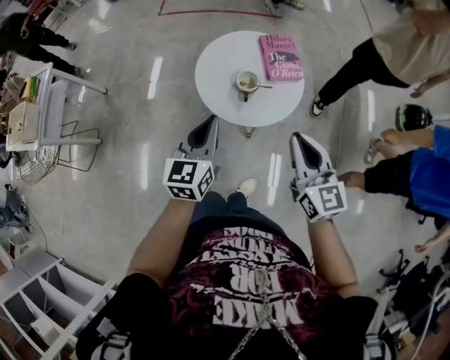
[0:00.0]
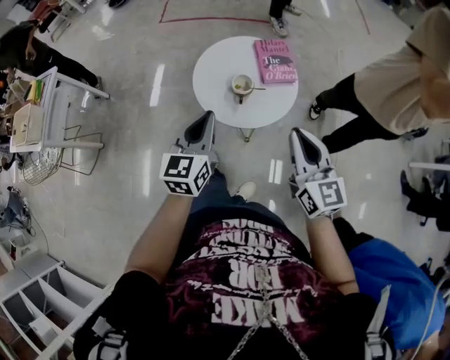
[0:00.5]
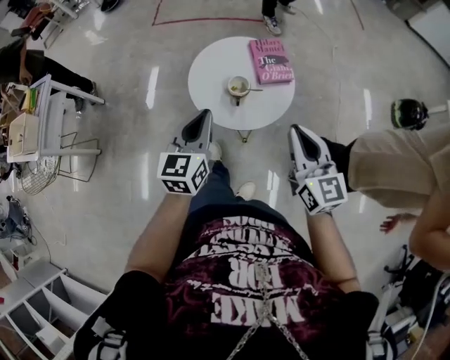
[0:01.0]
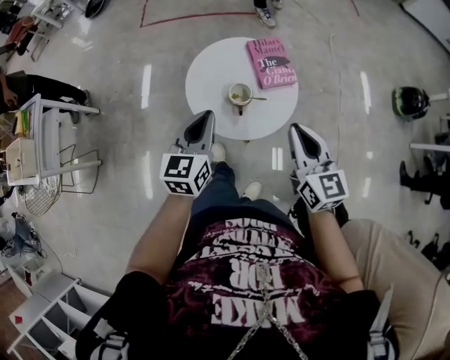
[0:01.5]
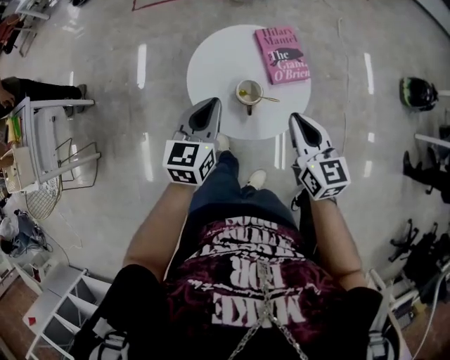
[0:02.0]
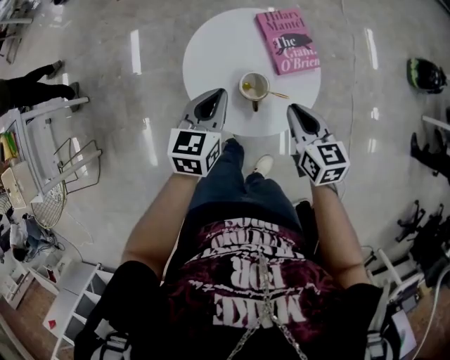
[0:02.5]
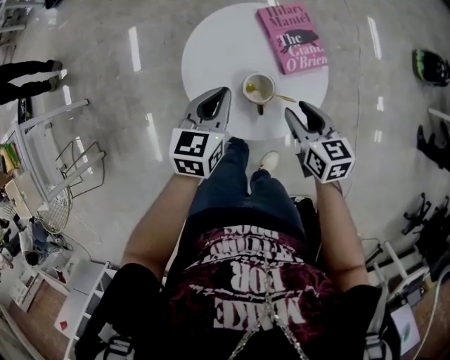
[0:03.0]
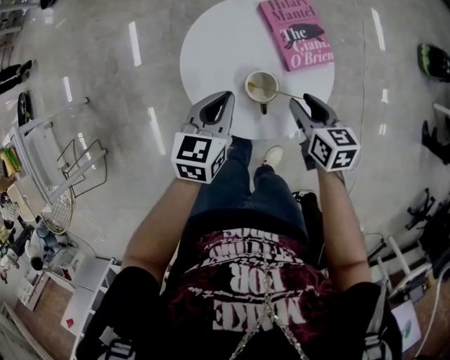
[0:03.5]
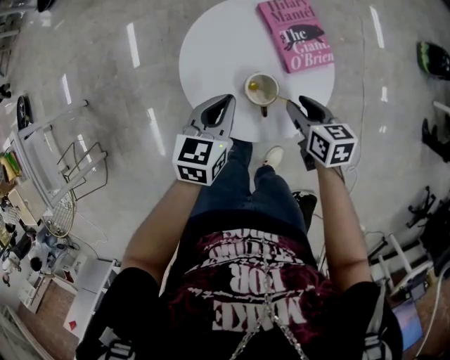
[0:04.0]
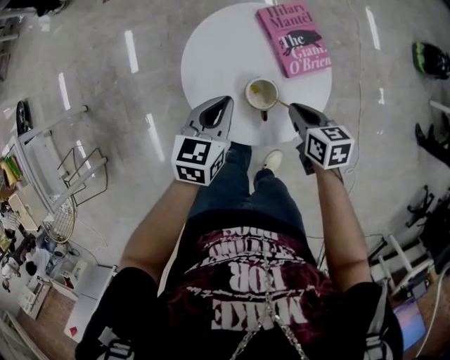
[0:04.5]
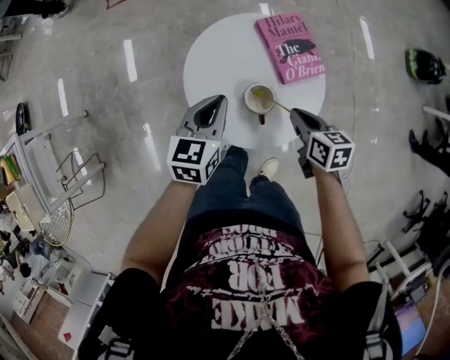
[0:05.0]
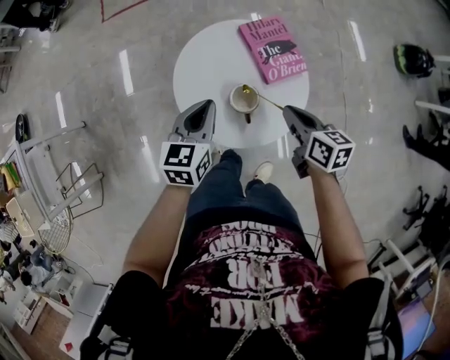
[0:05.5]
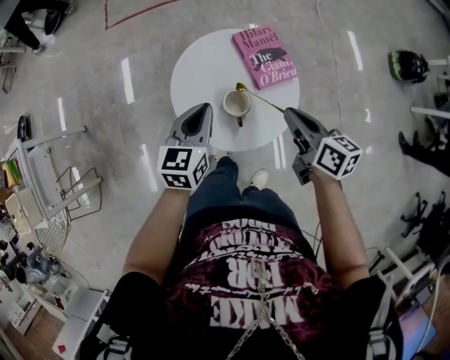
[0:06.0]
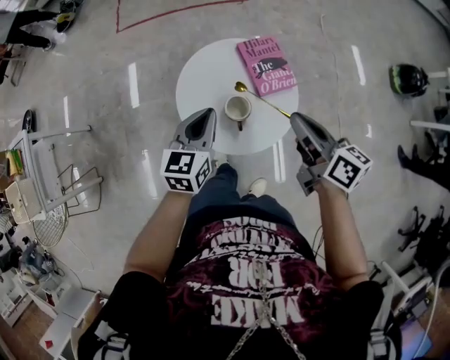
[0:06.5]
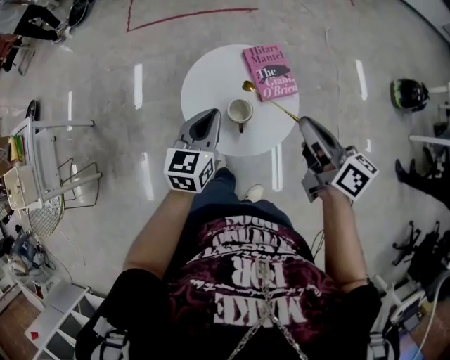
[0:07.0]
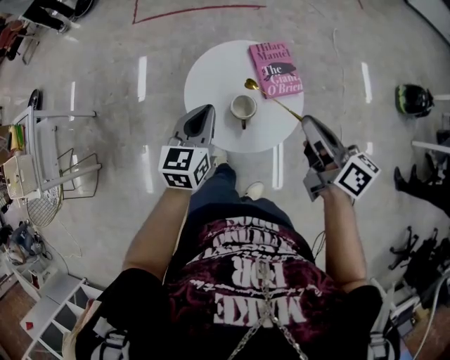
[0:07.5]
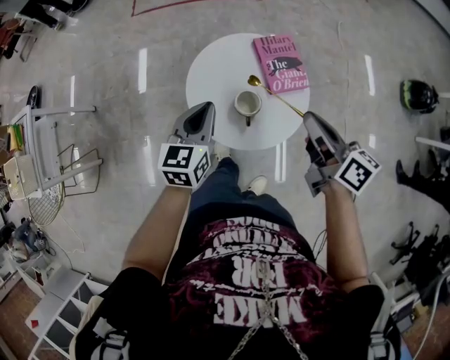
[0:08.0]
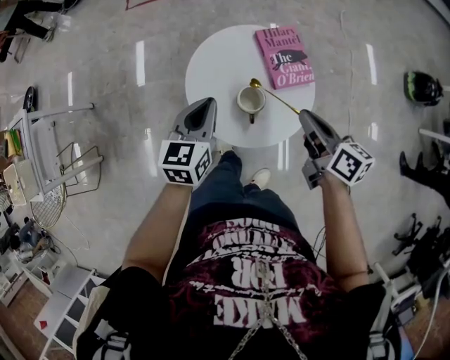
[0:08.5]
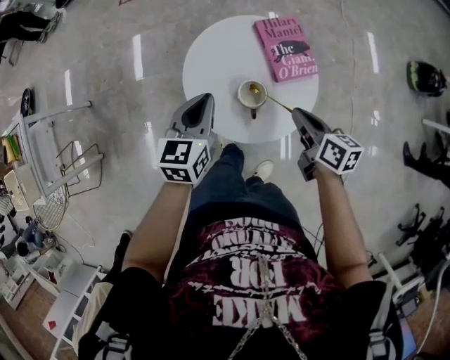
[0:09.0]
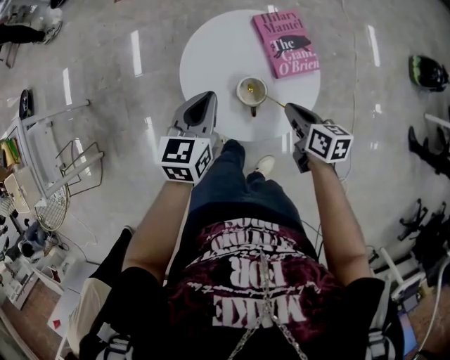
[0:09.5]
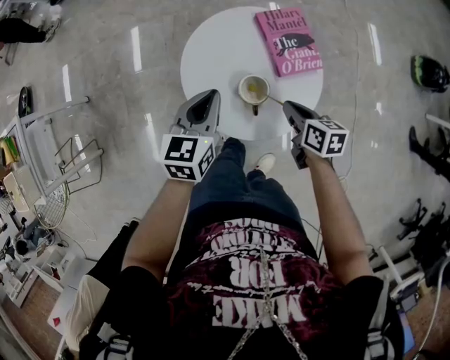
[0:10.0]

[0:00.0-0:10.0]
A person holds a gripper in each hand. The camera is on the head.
0:00.0 to 0:02.0: The left gripper shifts about 15 cm forward. The right gripper goes roughly 15 cm forward and downward.
0:02.0 to 0:04.0: The left gripper heads downward and forward, covering some 15 cm, while the right gripper travels downward by about 20 cm, changes its angle by roughly 30 degrees, and opens up.
0:04.0 to 0:06.0: The right gripper travels upward by roughly 15 cm, swivels some 20 degrees, and closes its fingers; the left gripper shifts roughly 10 cm upward.
0:06.0 to 0:08.0: The right gripper is displaced upward by some 10 cm.
0:08.0 to 0:10.0: The left gripper shifts some 5 cm downward, while the right gripper moves downward, some 25 cm, and turns by some 30 degrees.

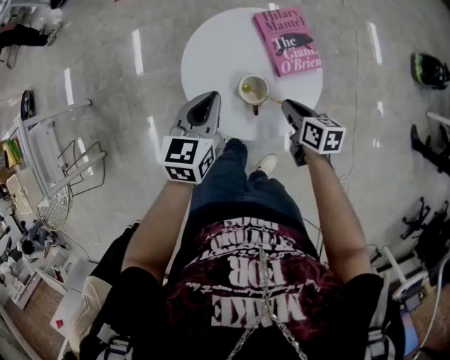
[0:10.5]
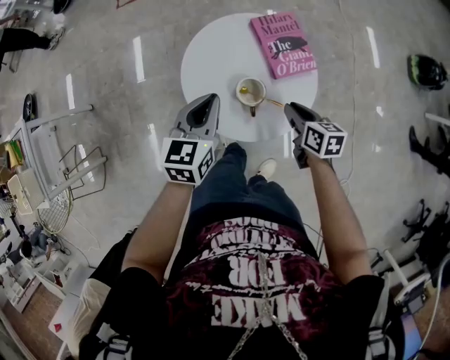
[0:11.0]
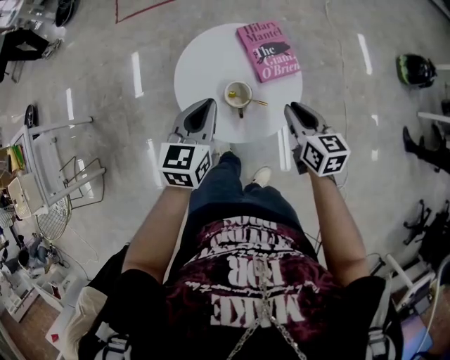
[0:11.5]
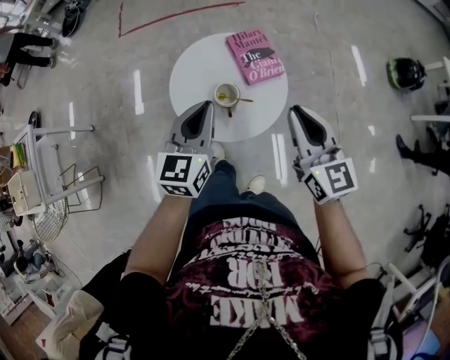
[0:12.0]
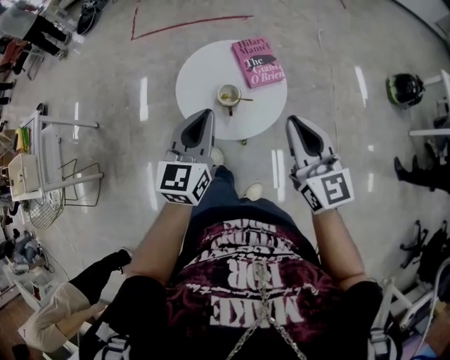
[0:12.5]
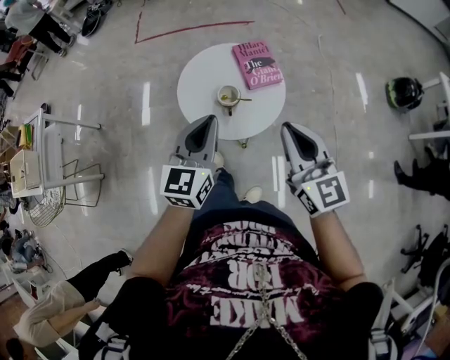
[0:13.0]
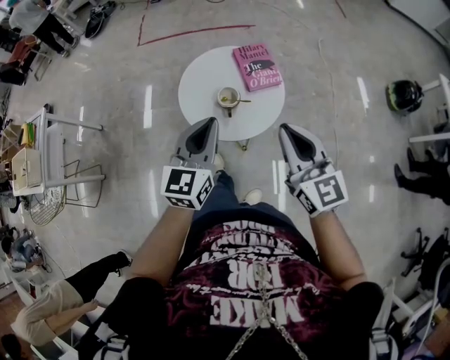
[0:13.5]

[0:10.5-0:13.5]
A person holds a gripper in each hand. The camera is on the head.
0:10.5 to 0:12.0: The right gripper travels upward by some 30 cm, and angles its fingers upward, by some 30 degrees. Meanwhile the left gripper is displaced upward, backward and to the right by about 15 cm.
0:12.0 to 0:13.5: Both grippers travel together backward, about 10 cm.

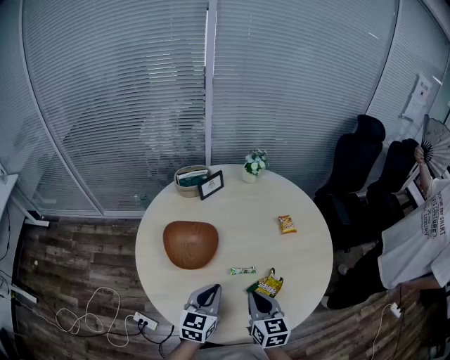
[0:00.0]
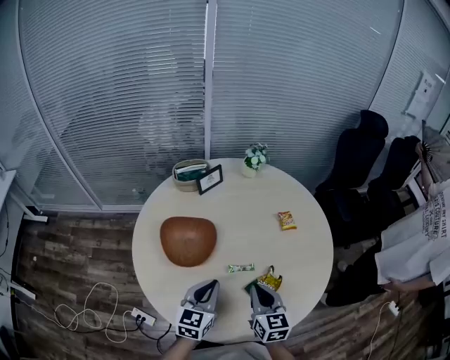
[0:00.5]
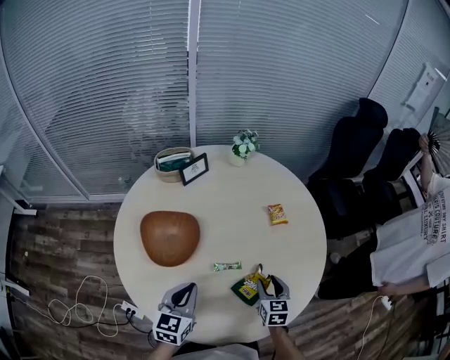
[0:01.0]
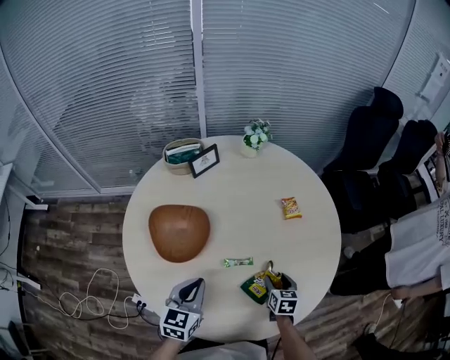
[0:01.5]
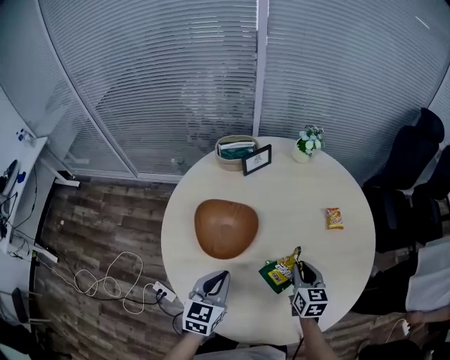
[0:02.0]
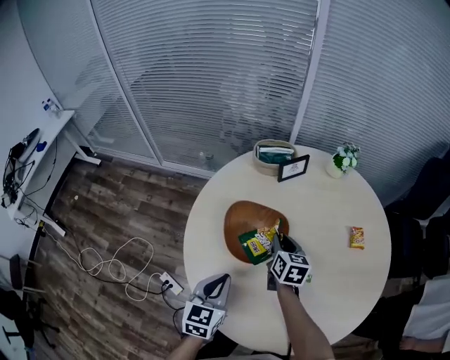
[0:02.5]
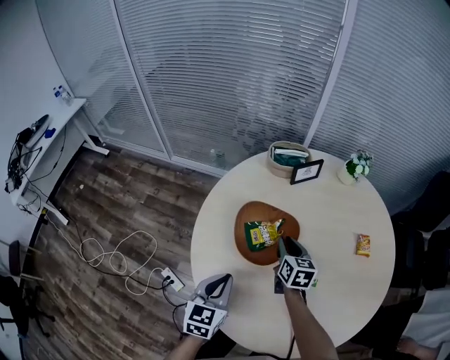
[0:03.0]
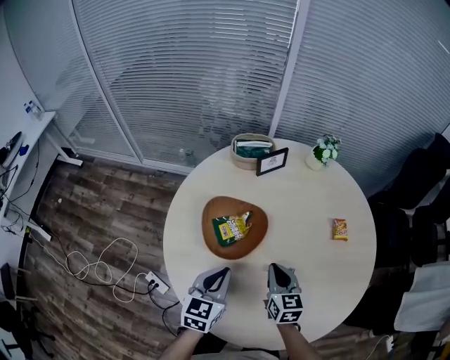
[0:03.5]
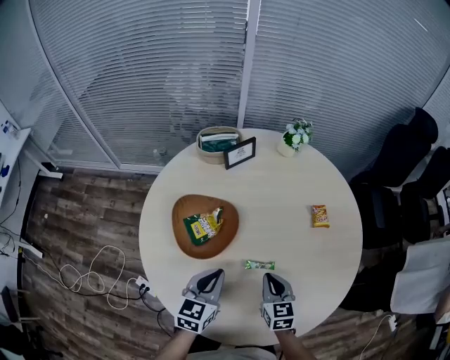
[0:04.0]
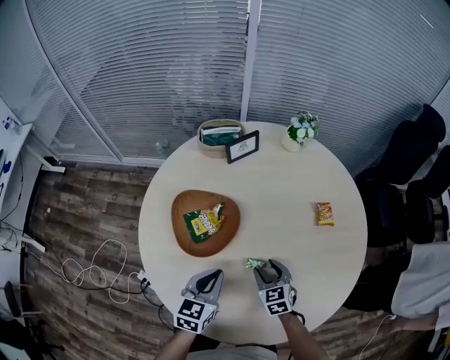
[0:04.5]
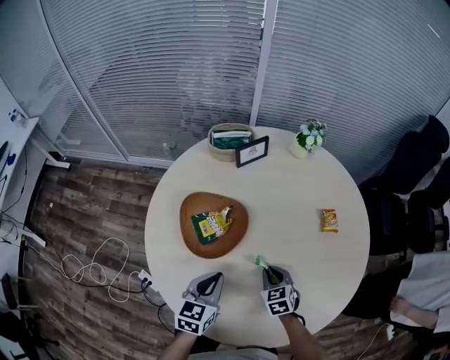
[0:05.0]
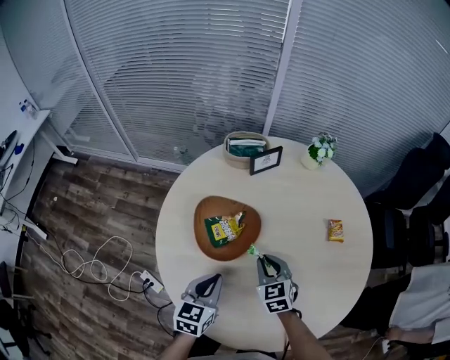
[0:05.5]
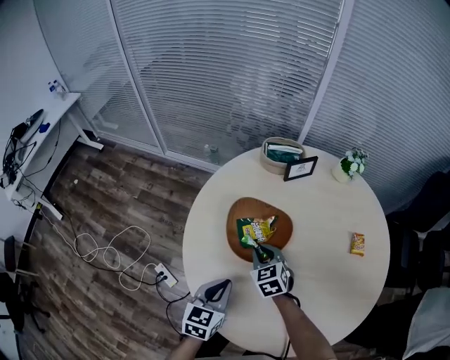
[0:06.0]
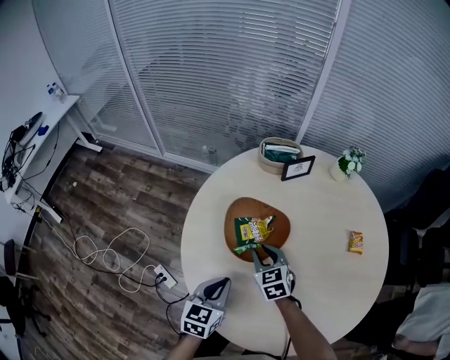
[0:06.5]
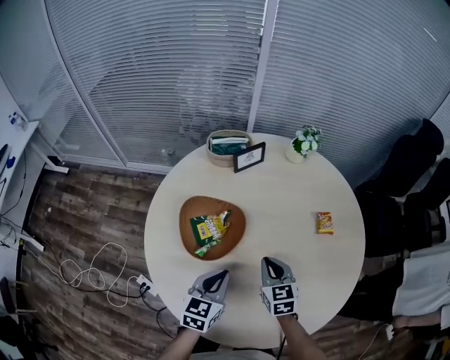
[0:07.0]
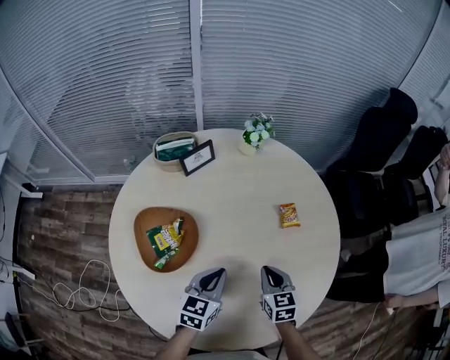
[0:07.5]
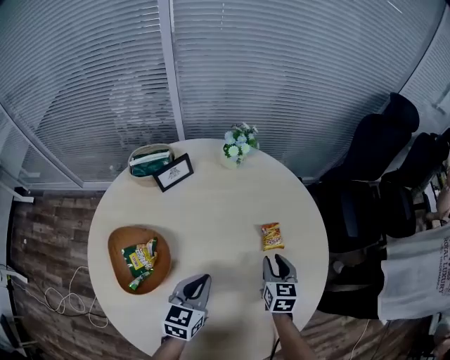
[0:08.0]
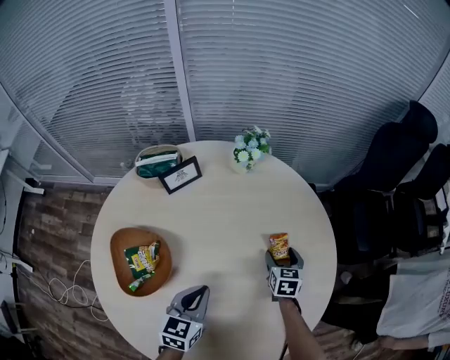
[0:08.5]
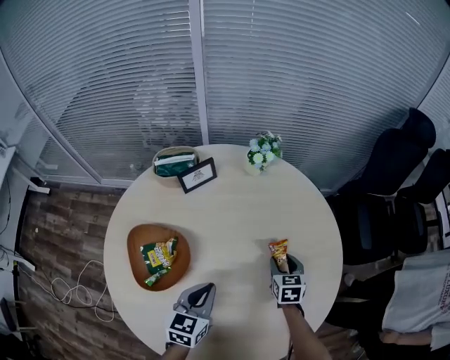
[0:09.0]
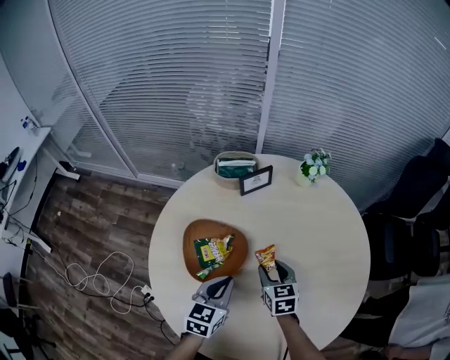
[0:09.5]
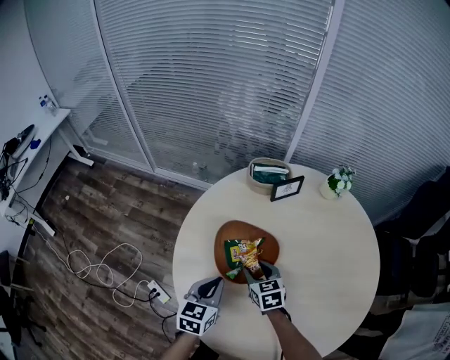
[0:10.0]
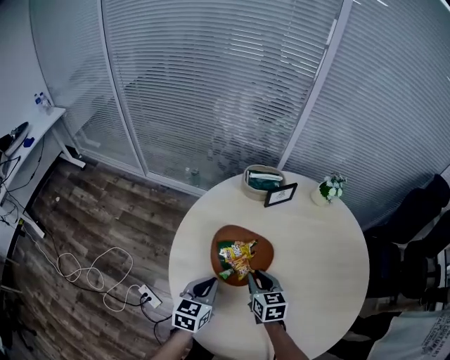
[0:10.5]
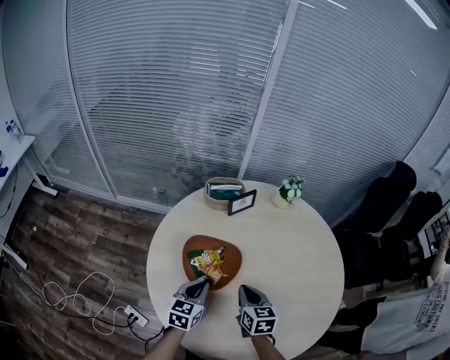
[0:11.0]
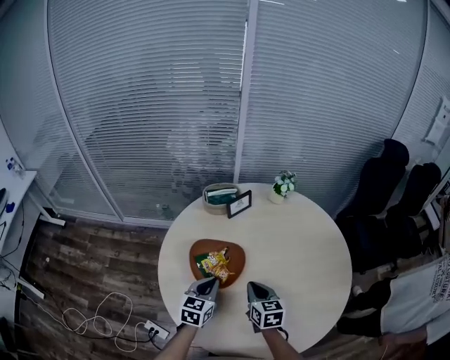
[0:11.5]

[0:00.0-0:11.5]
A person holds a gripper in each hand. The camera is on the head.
0:00.0 to 0:02.0: The right gripper travels forward and downward by some 15 cm, and opens and closes again, while the left gripper moves to the left, about 5 cm.
0:02.0 to 0:04.0: The left gripper goes to the left and returns, roughly 10 cm each way. Meanwhile the right gripper reaches roughly 20 cm to the left, then returns.
0:04.0 to 0:06.0: The left gripper heads to the left, covering about 10 cm; the right gripper moves to the left and forward, about 25 cm, swivels approximately 30 degrees, and opens, then closes once more.
0:06.0 to 0:07.5: Both grippers travel together to the right, some 30 cm. The left gripper swivels approximately 20 degrees; the right gripper turns by approximately 40 degrees.
0:07.5 to 0:09.5: The right gripper travels to the left and forward by some 15 cm, and opens up, while the left gripper travels to the left by approximately 10 cm.
0:09.5 to 0:11.5: The right gripper moves backward, to the left and upward, roughly 10 cm, and closes its fingers. The left gripper shifts approximately 5 cm to the left.

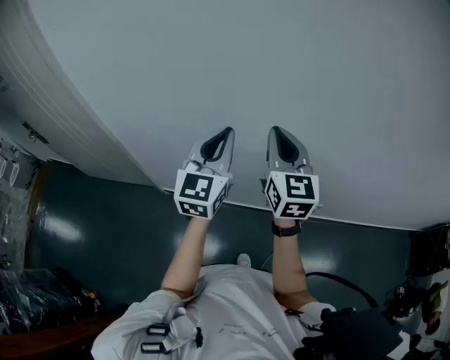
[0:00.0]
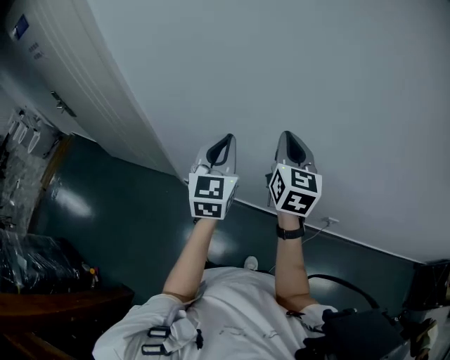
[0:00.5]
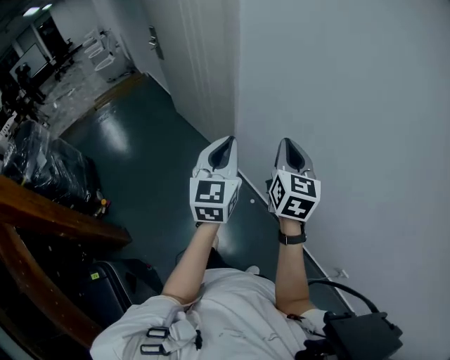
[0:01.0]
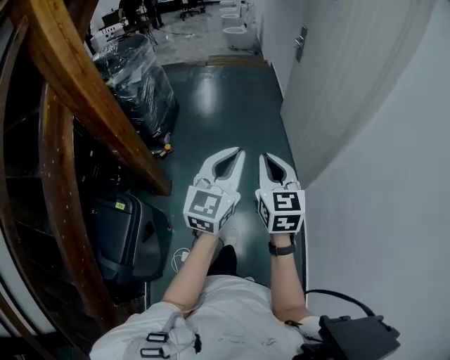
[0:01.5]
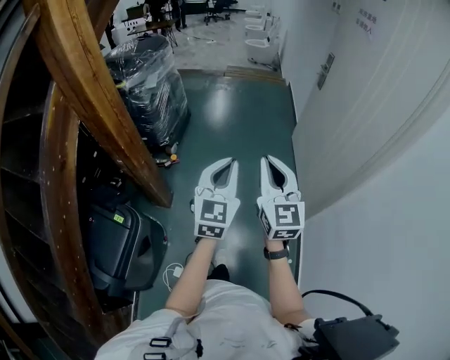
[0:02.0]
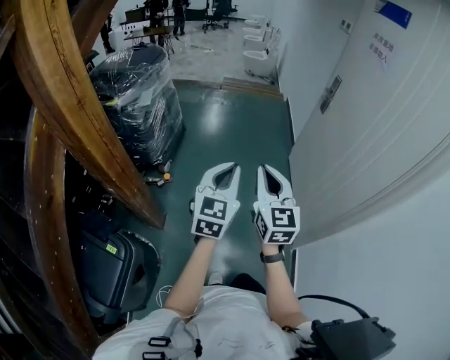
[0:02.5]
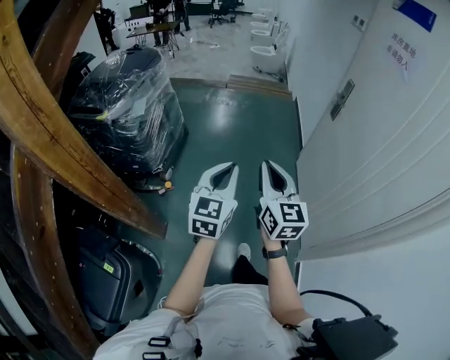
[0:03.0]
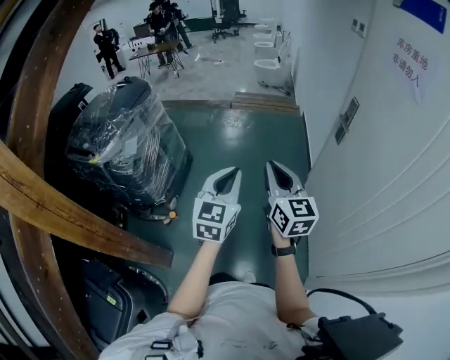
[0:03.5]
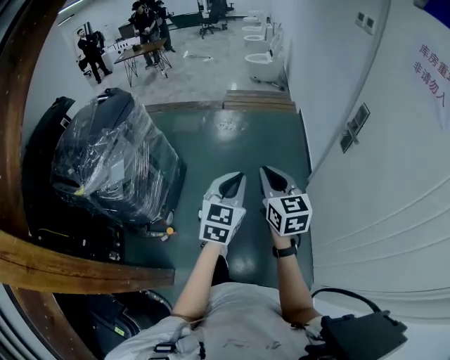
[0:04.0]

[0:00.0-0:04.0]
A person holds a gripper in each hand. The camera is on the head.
0:00.0 to 0:02.0: Both grippers are carried roughly 70 cm. The right gripper changes its angle by roughly 90 degrees. Meanwhile the left gripper changes its angle by roughly 90 degrees.
0:02.0 to 0:04.0: The two grippers travel together, forward, some 60 cm. The right gripper changes its angle by approximately 20 degrees.
